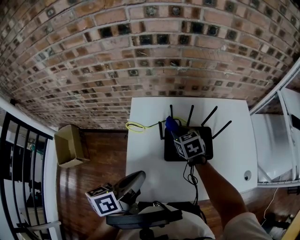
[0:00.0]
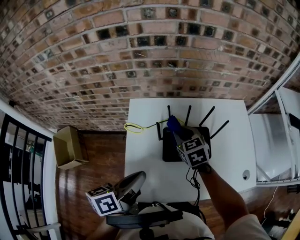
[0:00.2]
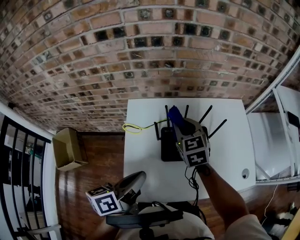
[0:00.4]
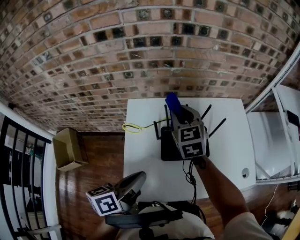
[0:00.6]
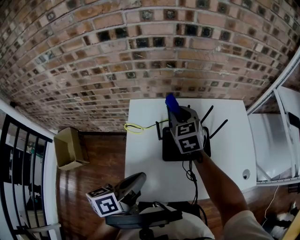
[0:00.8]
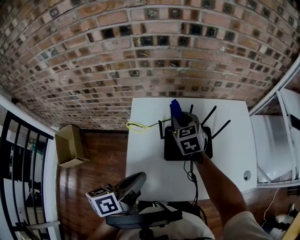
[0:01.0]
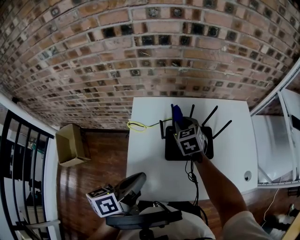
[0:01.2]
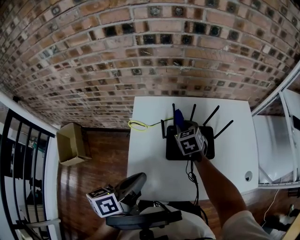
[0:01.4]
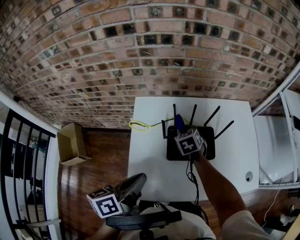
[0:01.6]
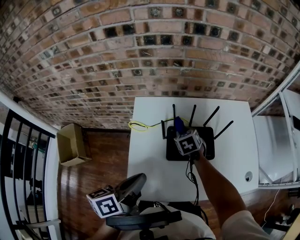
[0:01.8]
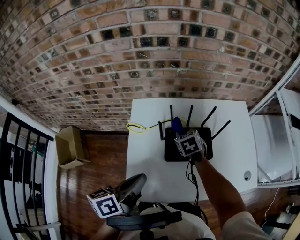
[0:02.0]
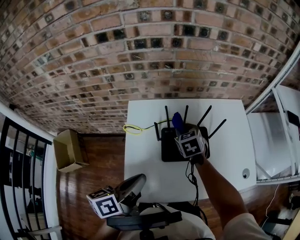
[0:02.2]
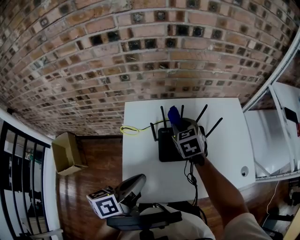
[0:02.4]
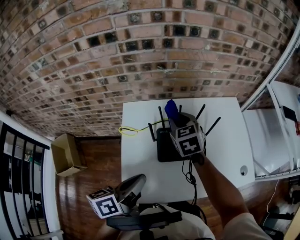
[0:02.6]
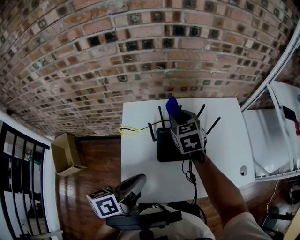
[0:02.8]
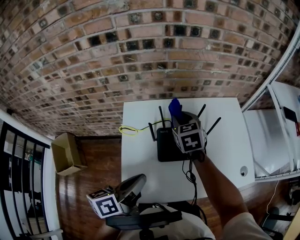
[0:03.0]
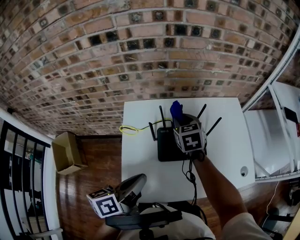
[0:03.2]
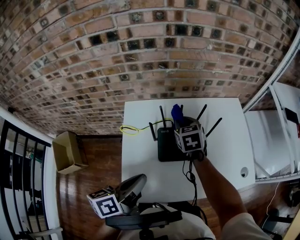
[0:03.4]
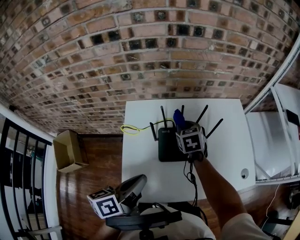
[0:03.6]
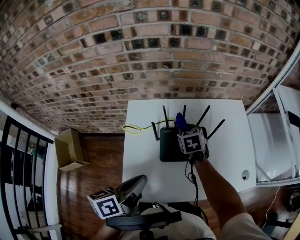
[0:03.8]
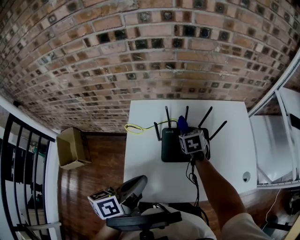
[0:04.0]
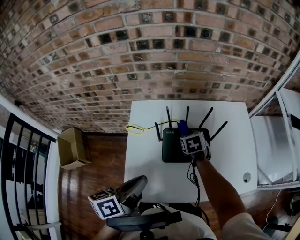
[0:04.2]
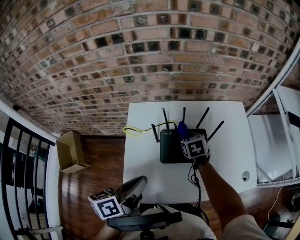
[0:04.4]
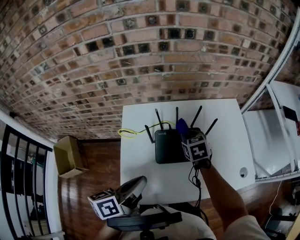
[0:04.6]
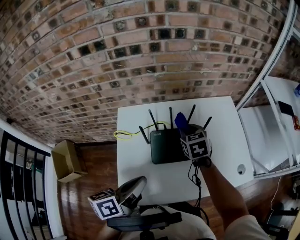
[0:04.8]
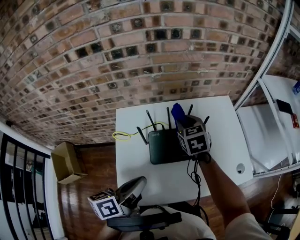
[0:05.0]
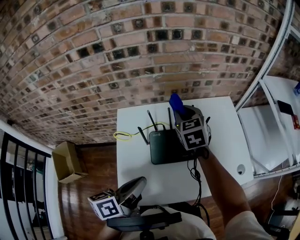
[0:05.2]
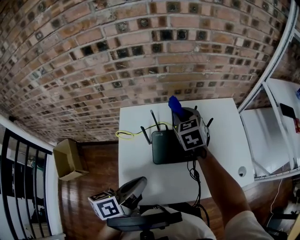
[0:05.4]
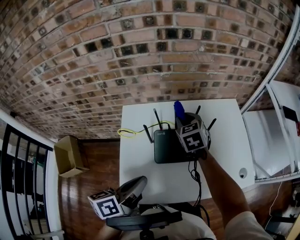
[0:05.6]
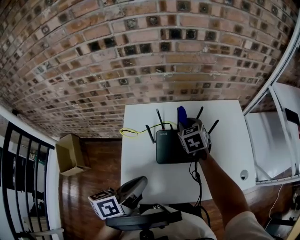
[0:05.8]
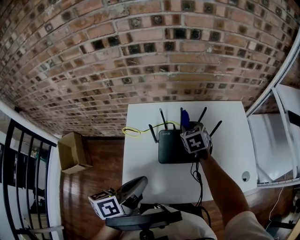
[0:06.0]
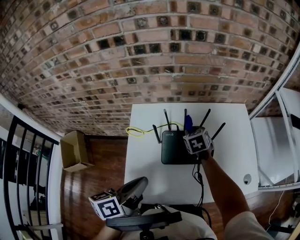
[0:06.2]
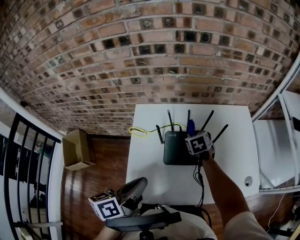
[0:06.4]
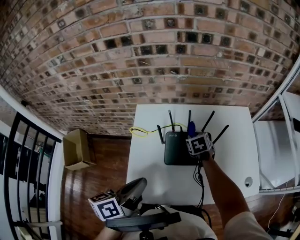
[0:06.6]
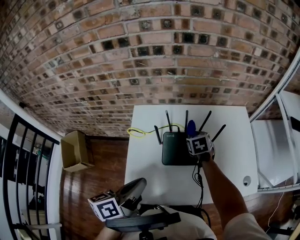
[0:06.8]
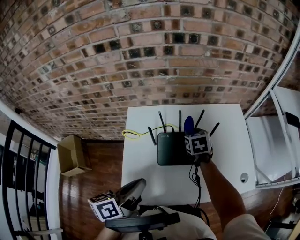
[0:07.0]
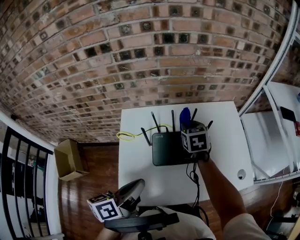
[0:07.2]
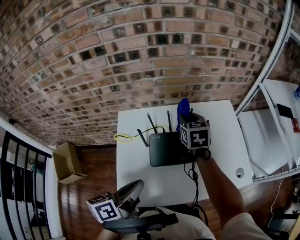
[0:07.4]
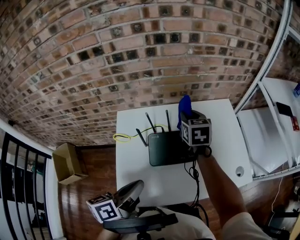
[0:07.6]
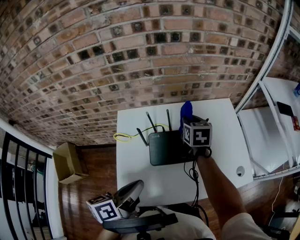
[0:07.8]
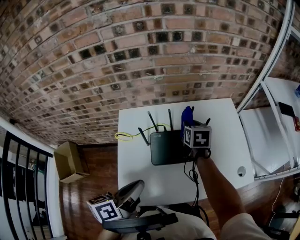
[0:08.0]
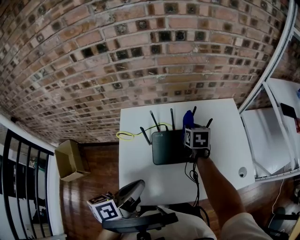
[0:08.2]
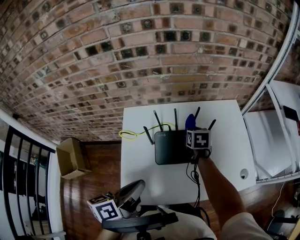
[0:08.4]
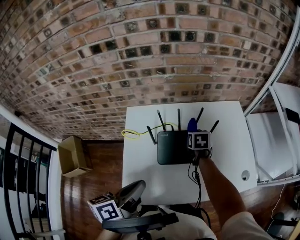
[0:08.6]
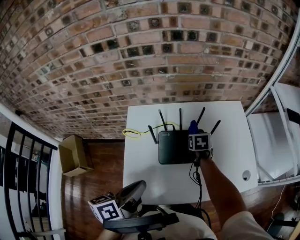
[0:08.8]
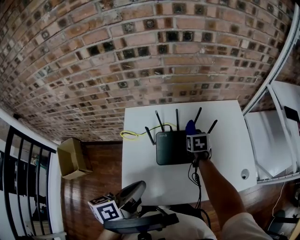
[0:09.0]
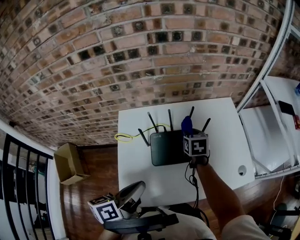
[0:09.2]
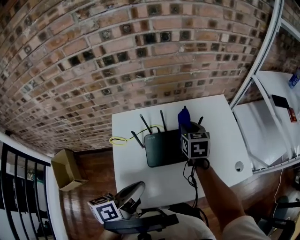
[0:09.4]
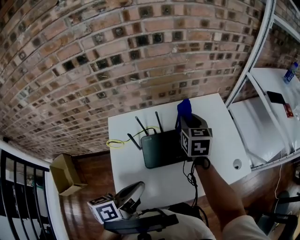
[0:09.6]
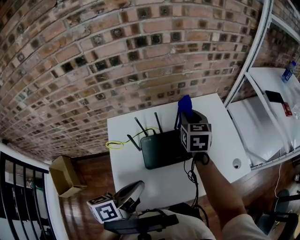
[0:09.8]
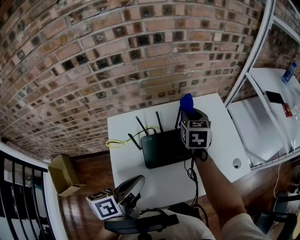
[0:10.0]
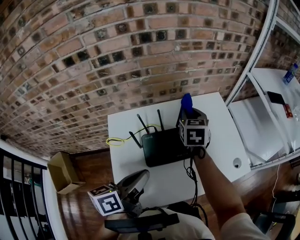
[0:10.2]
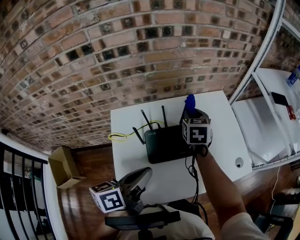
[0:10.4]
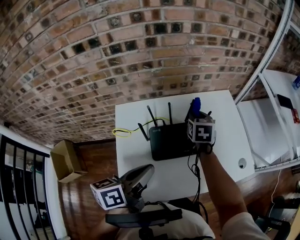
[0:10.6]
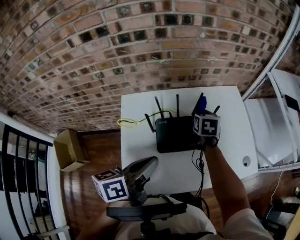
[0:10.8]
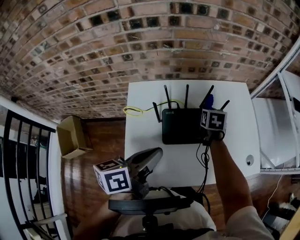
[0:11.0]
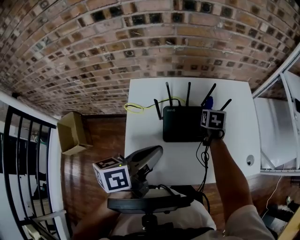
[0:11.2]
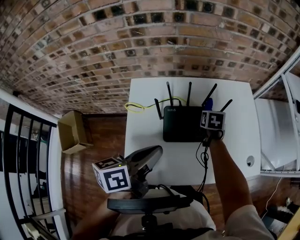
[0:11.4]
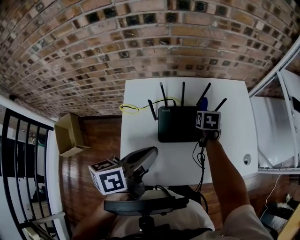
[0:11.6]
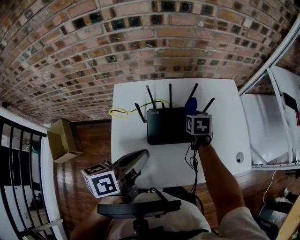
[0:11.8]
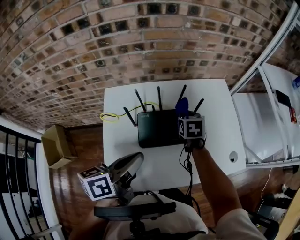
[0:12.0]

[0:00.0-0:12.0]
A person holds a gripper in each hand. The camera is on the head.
0:00.0 to 0:01.6: The right gripper reaches approximately 15 cm upward, then returns.
0:01.6 to 0:03.0: The right gripper moves upward, roughly 15 cm.
0:03.0 to 0:04.4: The right gripper is displaced downward by approximately 15 cm.
0:04.4 to 0:06.0: The right gripper travels upward and back again, roughly 20 cm each way.
0:06.0 to 0:07.6: The right gripper travels upward and to the right by approximately 10 cm, and changes its angle by about 20 degrees.
0:07.6 to 0:09.0: The right gripper goes some 15 cm downward, and swivels roughly 20 degrees.
0:09.0 to 0:10.4: The left gripper heads forward, covering about 5 cm. Meanwhile the right gripper shifts roughly 15 cm upward, and rotates approximately 20 degrees.
0:10.4 to 0:12.0: The right gripper goes approximately 10 cm downward.

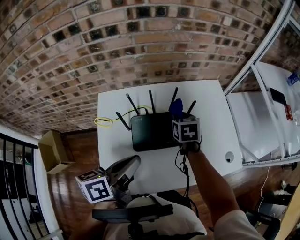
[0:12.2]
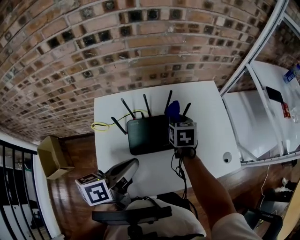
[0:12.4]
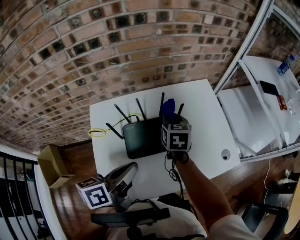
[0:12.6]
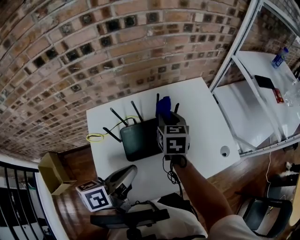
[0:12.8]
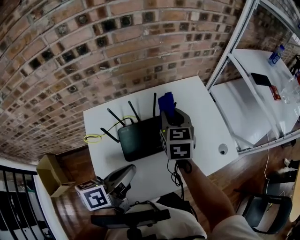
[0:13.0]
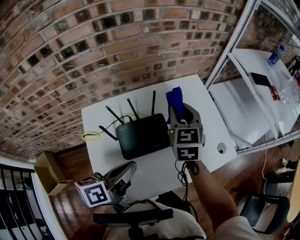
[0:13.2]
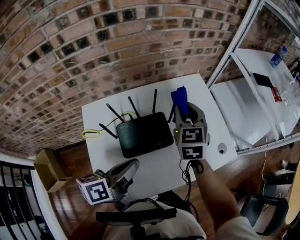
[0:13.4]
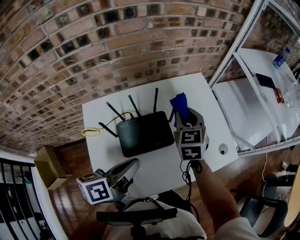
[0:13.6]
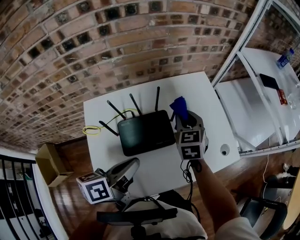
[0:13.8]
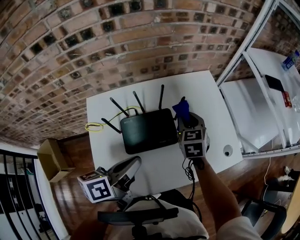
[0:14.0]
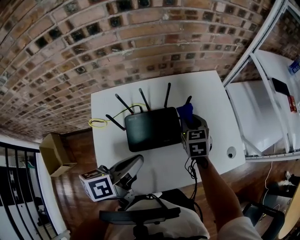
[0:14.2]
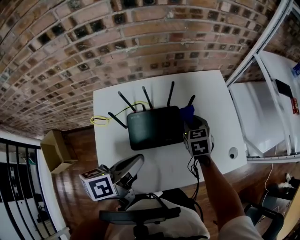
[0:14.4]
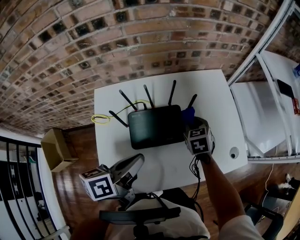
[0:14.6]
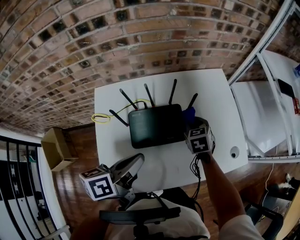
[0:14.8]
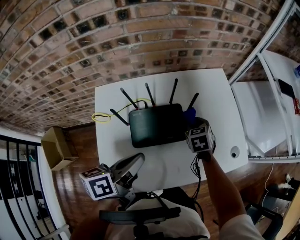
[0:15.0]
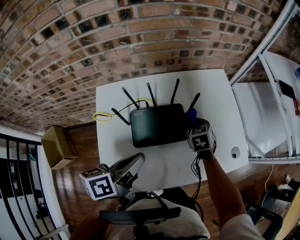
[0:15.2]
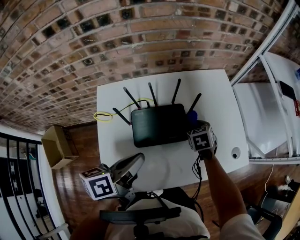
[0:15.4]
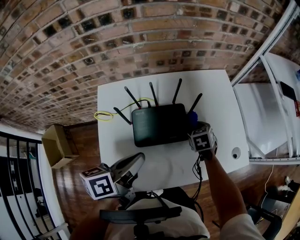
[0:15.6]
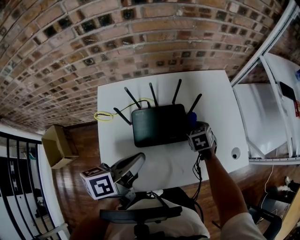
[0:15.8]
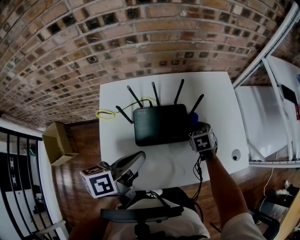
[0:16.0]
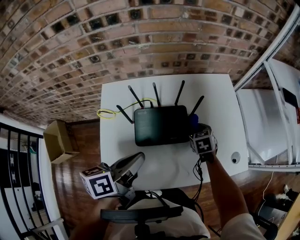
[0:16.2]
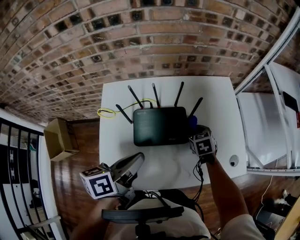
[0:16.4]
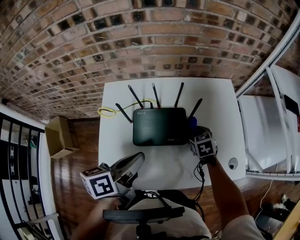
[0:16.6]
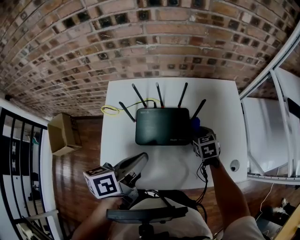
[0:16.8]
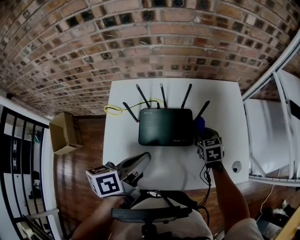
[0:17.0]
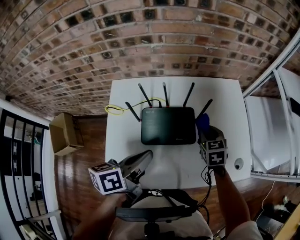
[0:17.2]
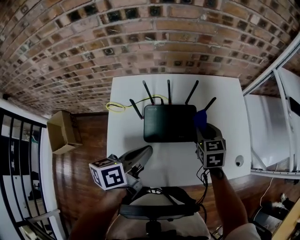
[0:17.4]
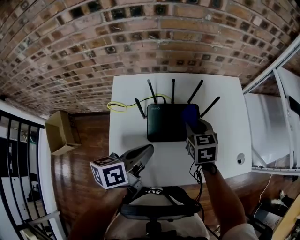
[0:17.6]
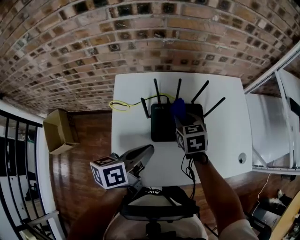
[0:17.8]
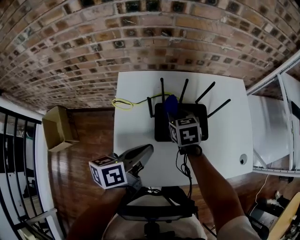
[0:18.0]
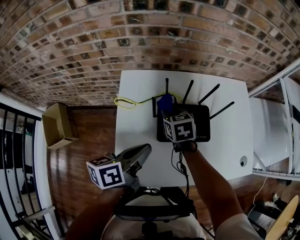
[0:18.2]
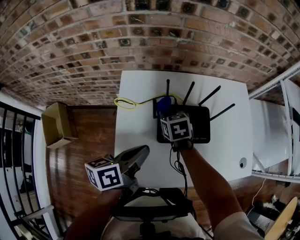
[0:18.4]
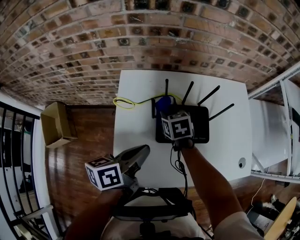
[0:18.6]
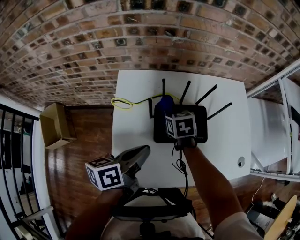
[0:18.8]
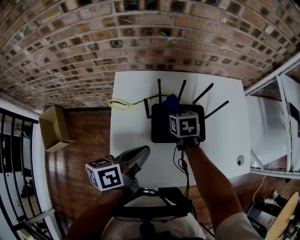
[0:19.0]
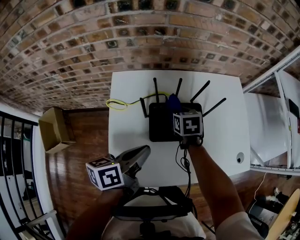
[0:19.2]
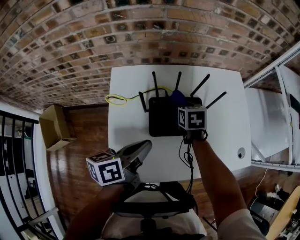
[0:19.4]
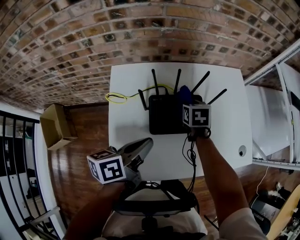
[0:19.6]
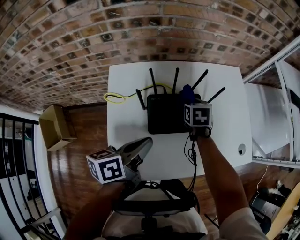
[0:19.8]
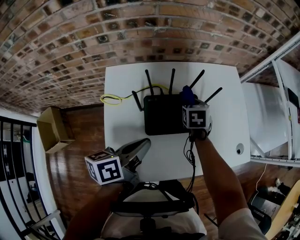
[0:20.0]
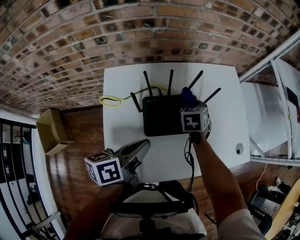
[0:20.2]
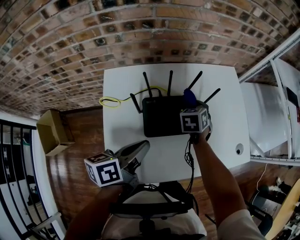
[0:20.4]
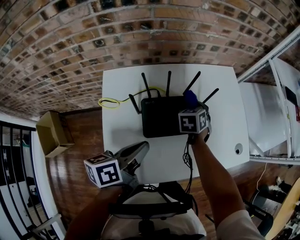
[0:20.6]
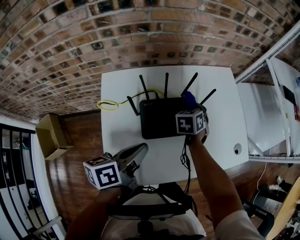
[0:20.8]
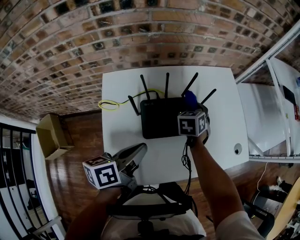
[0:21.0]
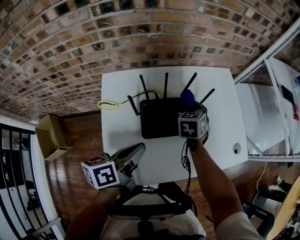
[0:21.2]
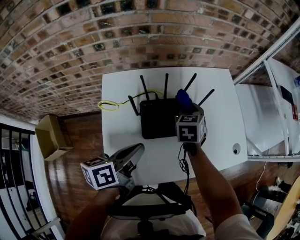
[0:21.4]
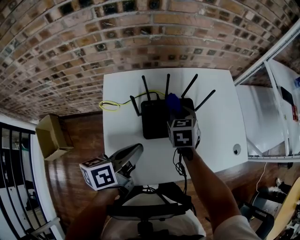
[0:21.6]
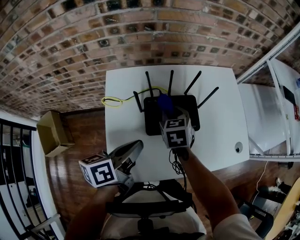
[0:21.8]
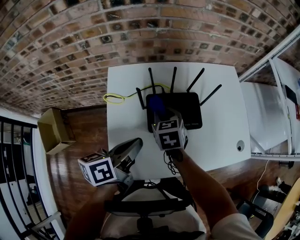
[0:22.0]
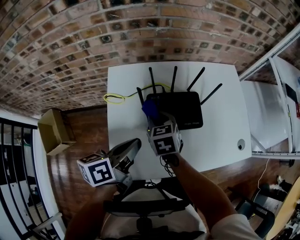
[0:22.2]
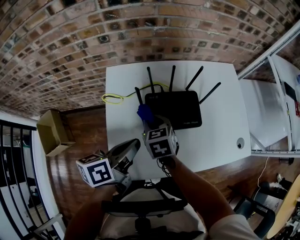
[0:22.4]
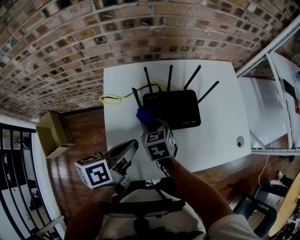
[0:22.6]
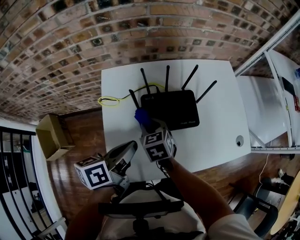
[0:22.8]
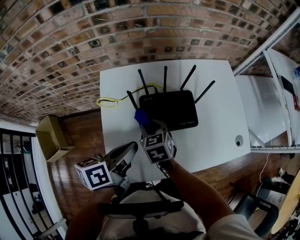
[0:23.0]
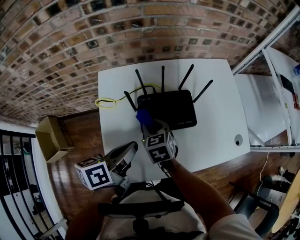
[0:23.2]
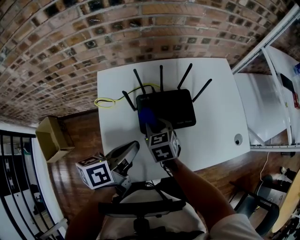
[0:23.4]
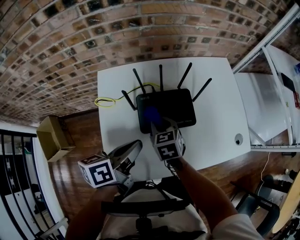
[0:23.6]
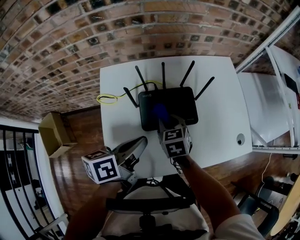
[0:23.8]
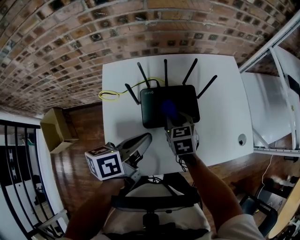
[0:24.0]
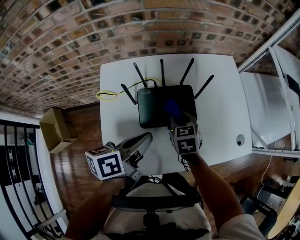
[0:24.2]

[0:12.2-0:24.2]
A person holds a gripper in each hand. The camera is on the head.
0:12.2 to 0:13.8: The right gripper goes roughly 10 cm to the right and upward, and swivels approximately 20 degrees. Meanwhile the left gripper changes place by roughly 5 cm.
0:13.8 to 0:15.2: The right gripper moves downward, roughly 15 cm, and changes its angle by approximately 20 degrees.
0:15.2 to 0:16.6: The grippers make only small movements.
0:16.6 to 0:18.2: The left gripper goes about 15 cm to the left, while the right gripper is displaced to the left by approximately 30 cm.
0:18.2 to 0:19.8: The right gripper is displaced to the right by approximately 15 cm, and swivels some 20 degrees.
0:19.8 to 0:21.2: The right gripper ends up some 5 cm from where it was.
0:21.2 to 0:22.6: The right gripper goes roughly 25 cm to the left and backward, and turns by approximately 30 degrees.
0:22.6 to 0:24.2: The right gripper shifts roughly 15 cm to the right. The left gripper moves to the right, approximately 10 cm.
